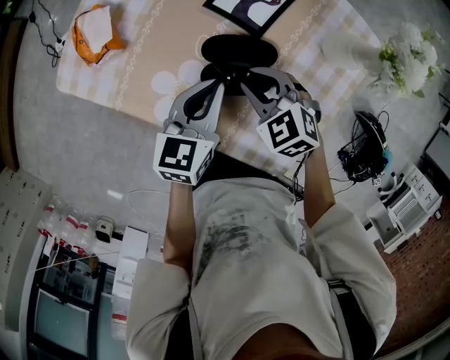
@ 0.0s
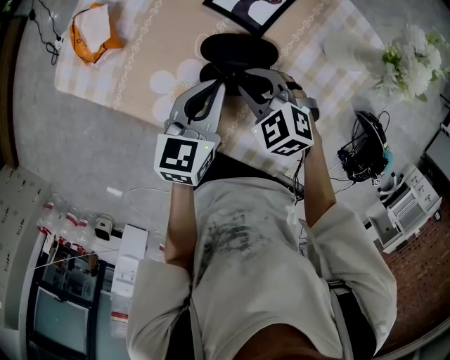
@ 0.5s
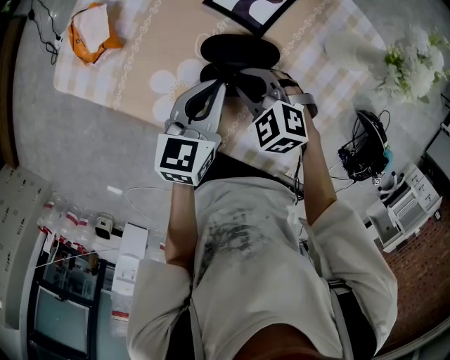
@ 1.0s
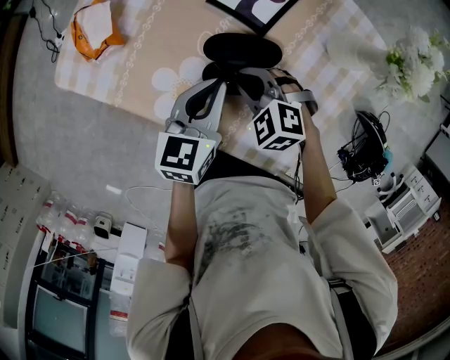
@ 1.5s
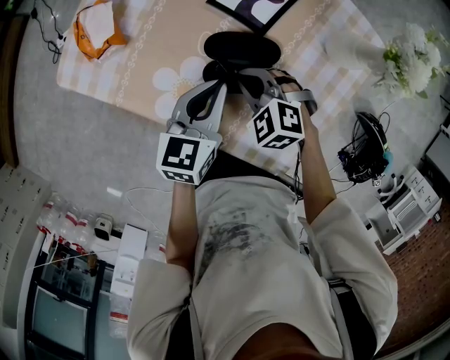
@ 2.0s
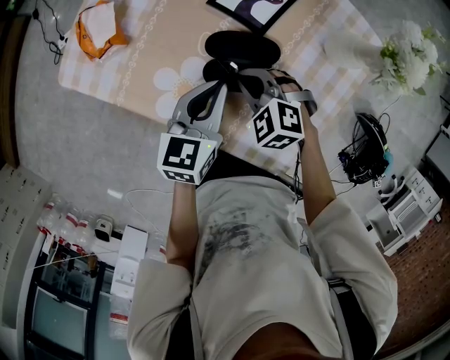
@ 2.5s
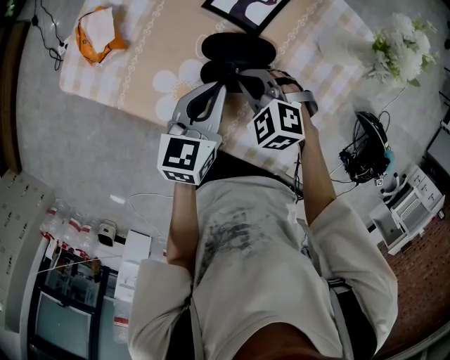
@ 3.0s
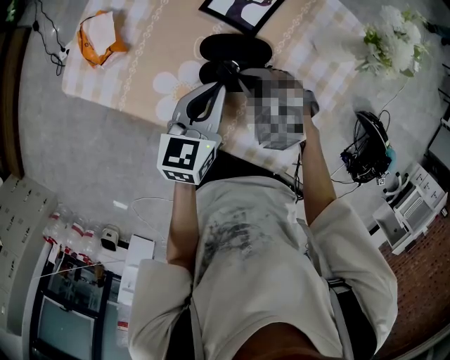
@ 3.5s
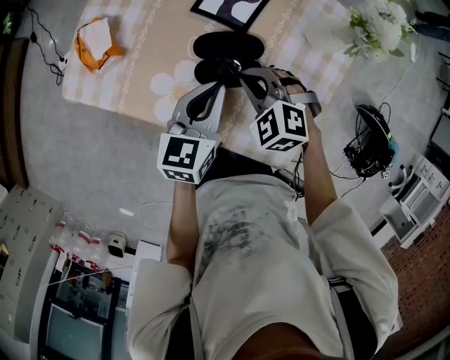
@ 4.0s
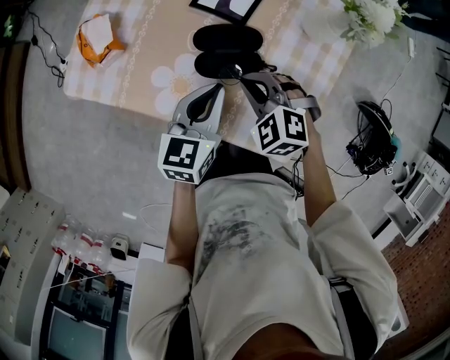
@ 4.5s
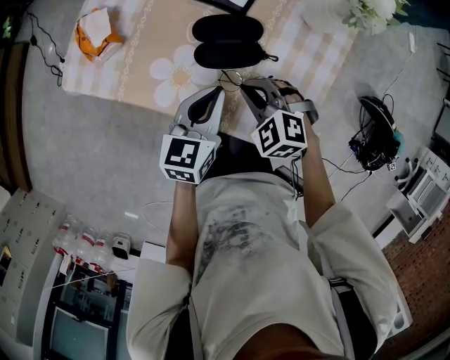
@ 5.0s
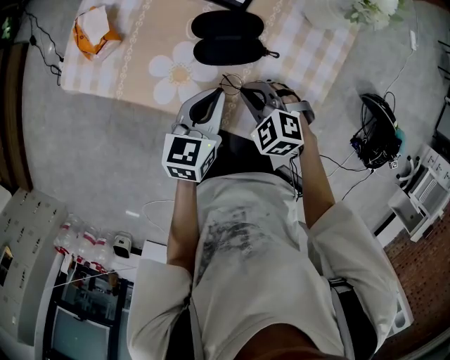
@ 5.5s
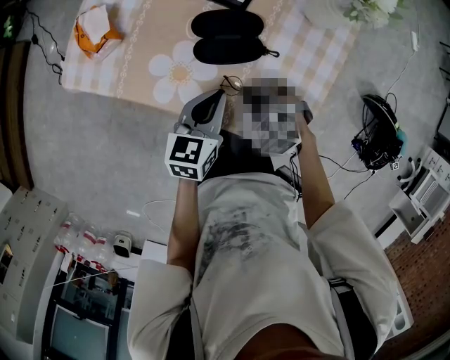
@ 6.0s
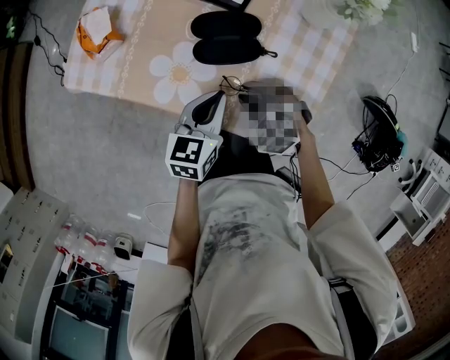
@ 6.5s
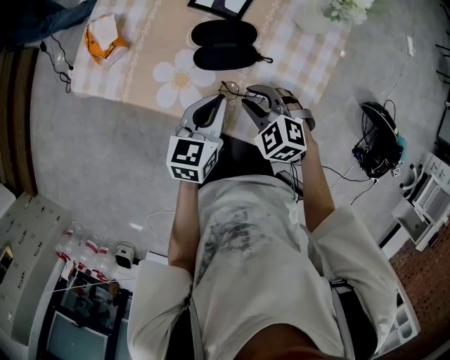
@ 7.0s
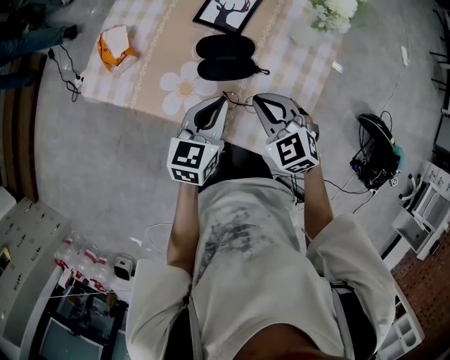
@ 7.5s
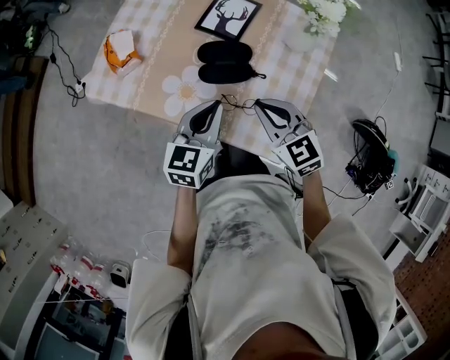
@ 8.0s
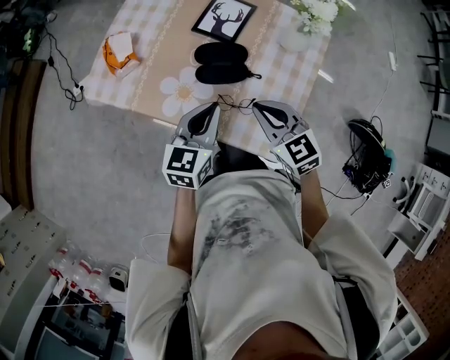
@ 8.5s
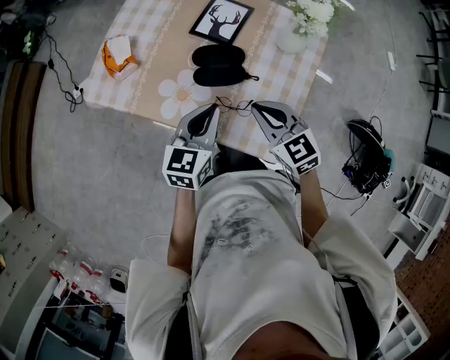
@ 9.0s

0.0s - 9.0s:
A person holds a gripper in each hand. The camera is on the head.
0.0s - 2.0s: The grippers make only small movements.
2.0s - 4.5s: The left gripper ends up about 5 cm from where it was, while the right gripper goes about 5 cm upward.
4.5s - 7.0s: Both grippers travel together backward, some 5 cm. The right gripper opens up.
7.0s - 9.0s: The right gripper travels upward by approximately 15 cm, turns by approximately 30 degrees, and closes up, while the left gripper shifts roughly 10 cm upward.

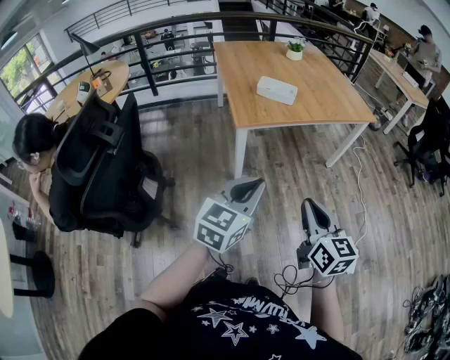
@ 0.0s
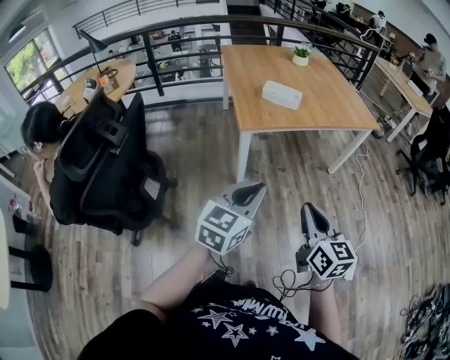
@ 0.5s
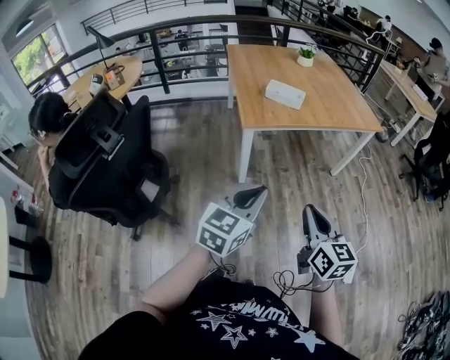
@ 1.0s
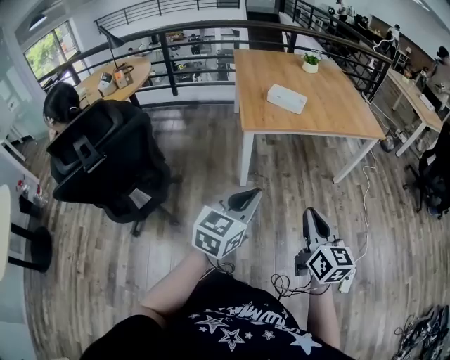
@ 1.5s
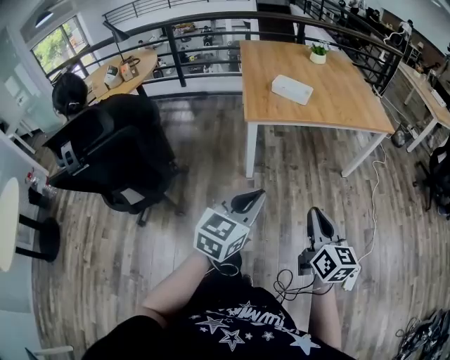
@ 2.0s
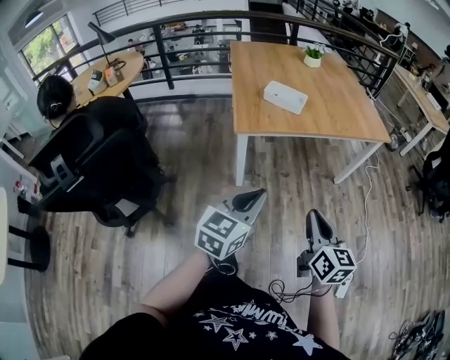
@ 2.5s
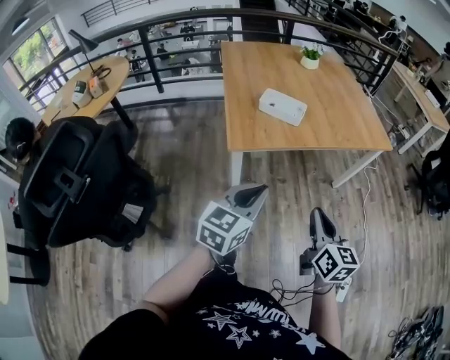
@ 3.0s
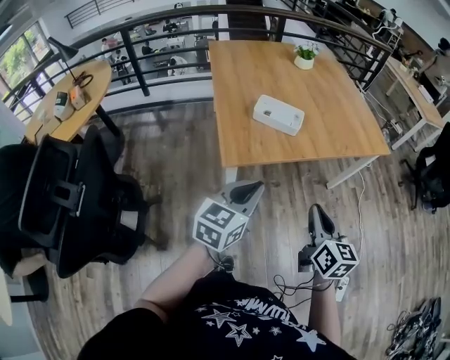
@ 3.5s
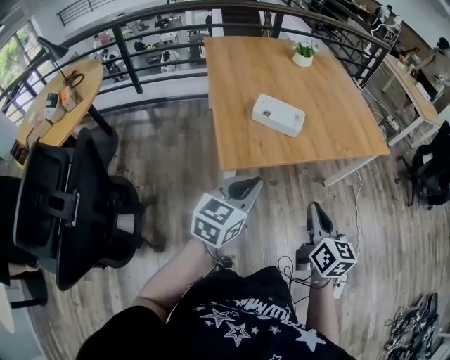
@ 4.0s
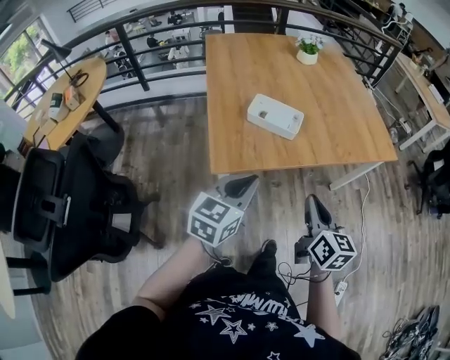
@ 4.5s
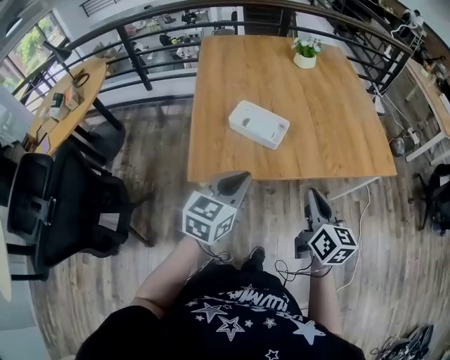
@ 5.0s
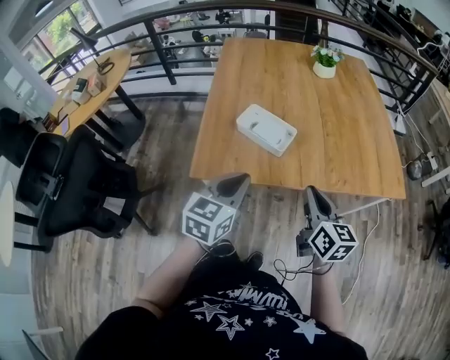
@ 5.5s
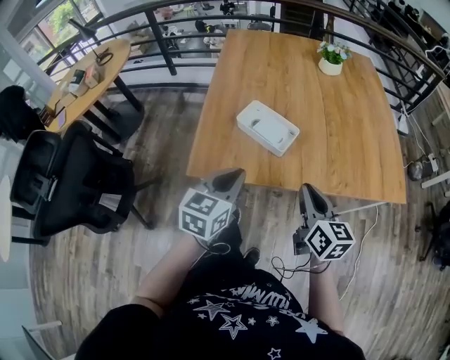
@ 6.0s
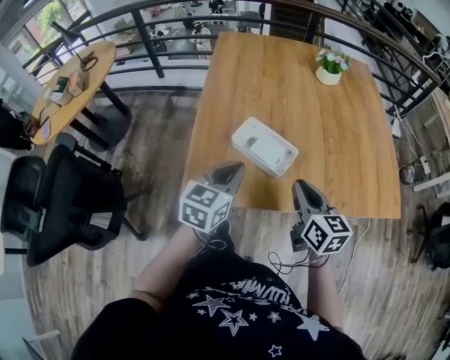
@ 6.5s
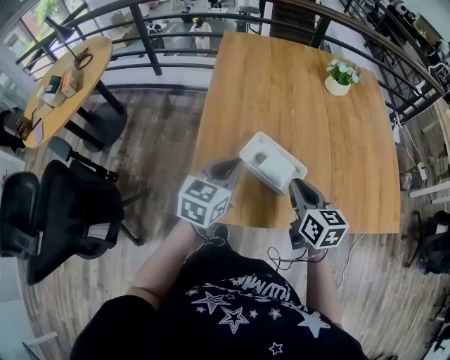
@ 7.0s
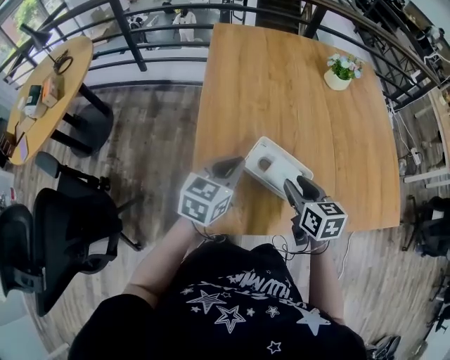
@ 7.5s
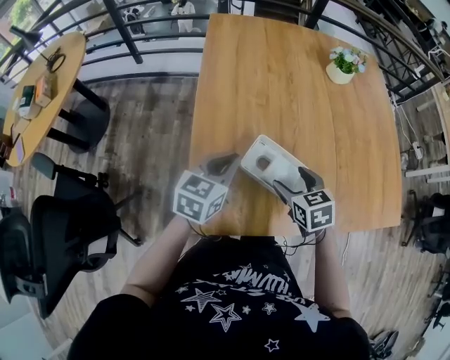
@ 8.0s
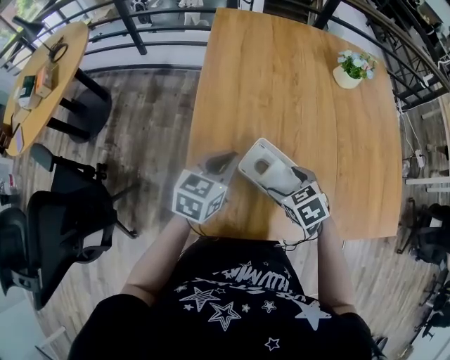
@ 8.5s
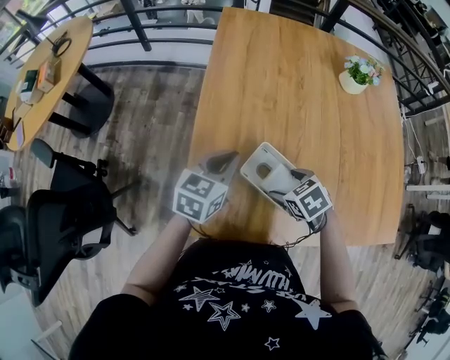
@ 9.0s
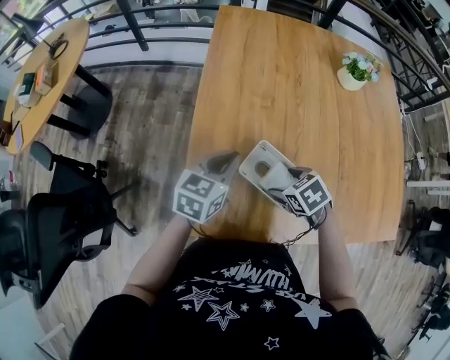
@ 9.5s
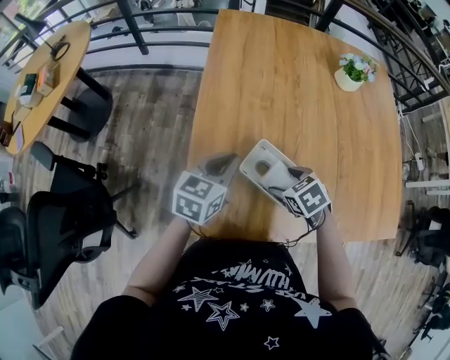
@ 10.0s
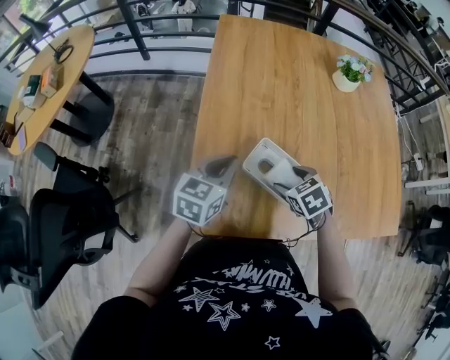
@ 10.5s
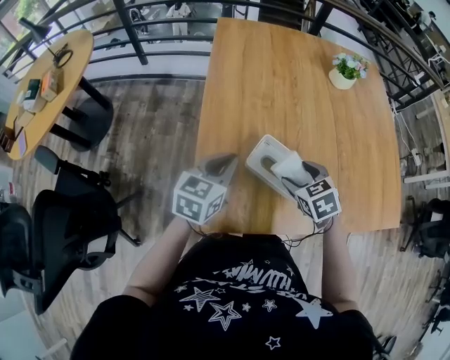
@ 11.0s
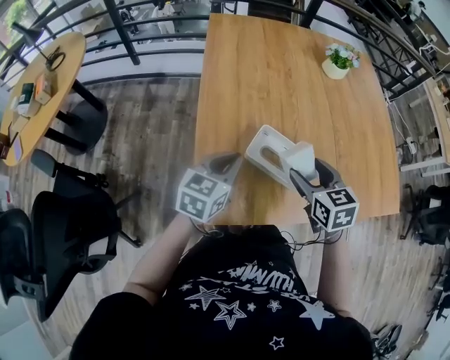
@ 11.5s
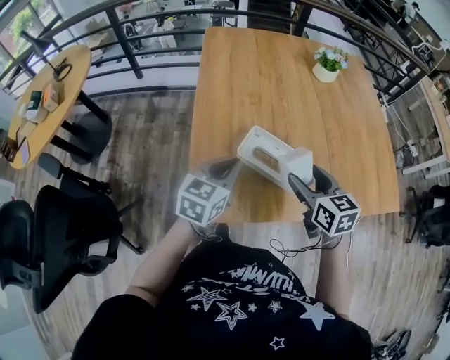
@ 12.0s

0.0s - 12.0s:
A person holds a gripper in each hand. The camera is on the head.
0.0s - 2.0s: The two grippers go approximately 10 cm to the right.
2.0s - 4.0s: Both grippers travel together forward, some 40 cm.
4.0s - 6.0s: Both grippers travel together forward and to the right, some 25 cm. The left gripper swivels about 30 degrees, while the right gripper rotates approximately 20 degrees.
6.0s - 8.0s: The left gripper moves forward and to the left, roughly 30 cm, while the right gripper heads forward, to the left and downward, covering approximately 30 cm, points its fingers about 30 degrees further downward, and opens.
8.0s - 10.0s: The right gripper moves roughly 5 cm, and swivels approximately 30 degrees.
10.0s - 12.0s: The left gripper moves backward, some 10 cm; the right gripper heads upward and backward, covering roughly 15 cm, and angles its fingers upward, by about 40 degrees.

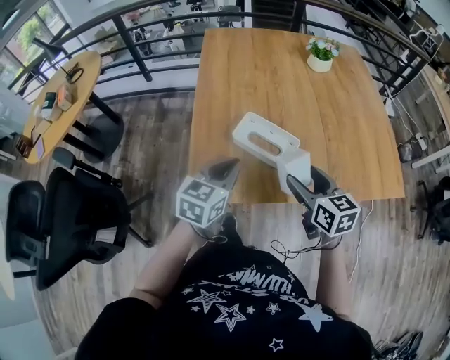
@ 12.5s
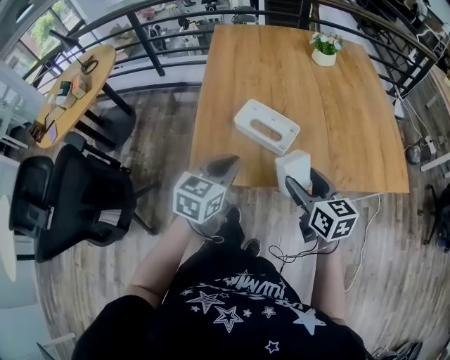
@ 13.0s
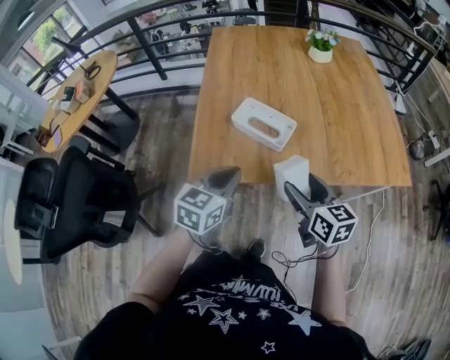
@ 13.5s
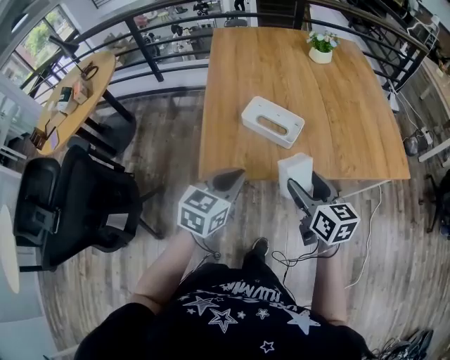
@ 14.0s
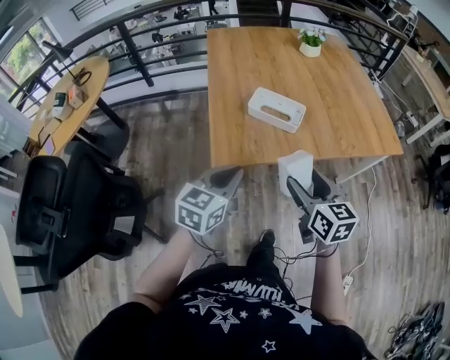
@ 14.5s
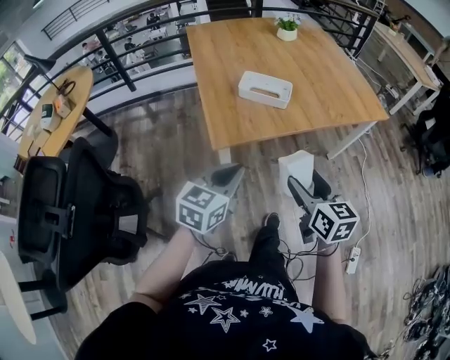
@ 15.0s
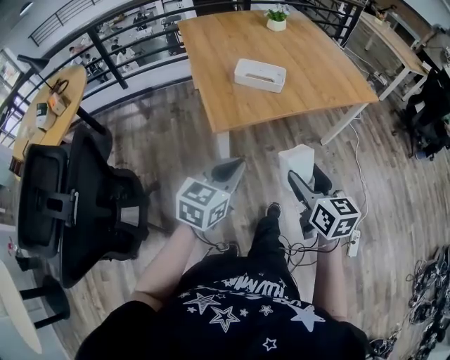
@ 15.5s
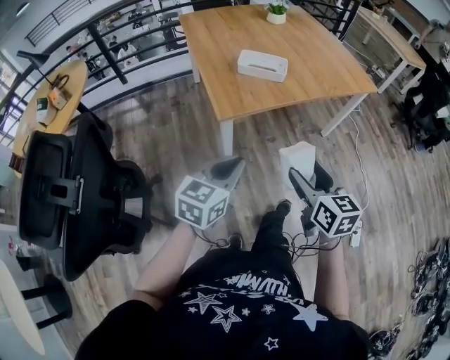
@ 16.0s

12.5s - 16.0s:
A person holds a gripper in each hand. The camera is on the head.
12.5s - 14.5s: The grippers both shift backward by approximately 20 cm.
14.5s - 16.0s: Both grippers move backward, approximately 25 cm.

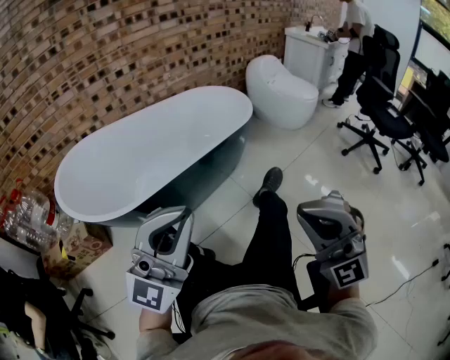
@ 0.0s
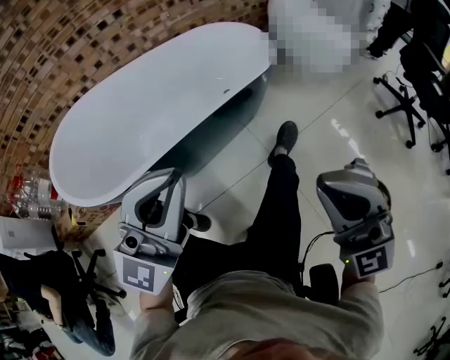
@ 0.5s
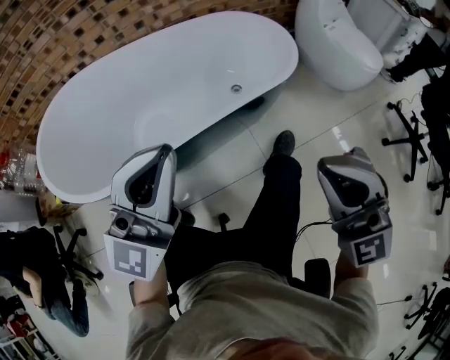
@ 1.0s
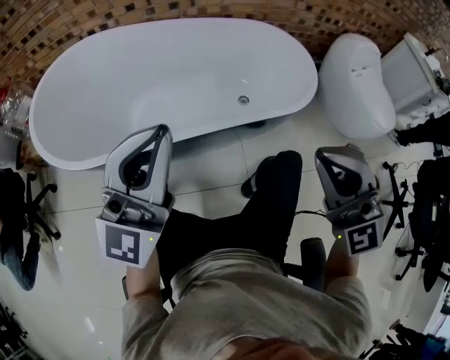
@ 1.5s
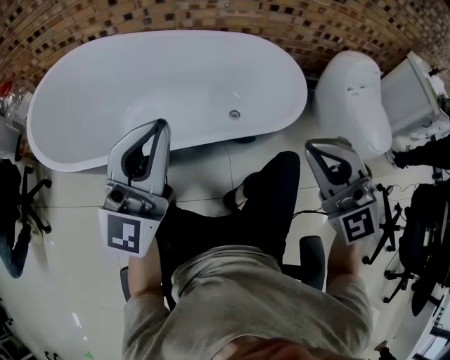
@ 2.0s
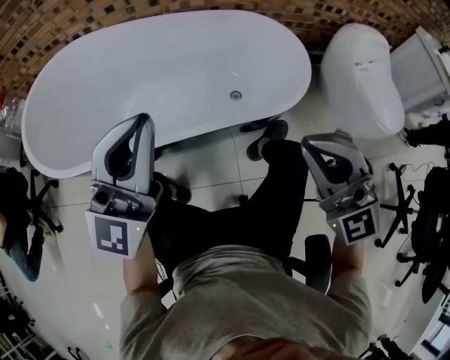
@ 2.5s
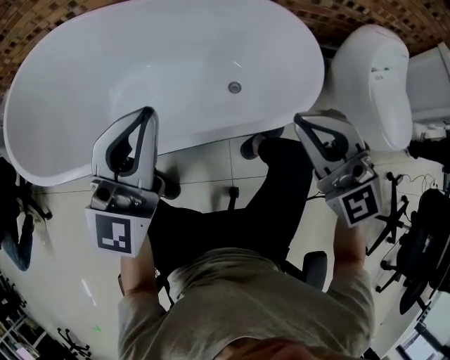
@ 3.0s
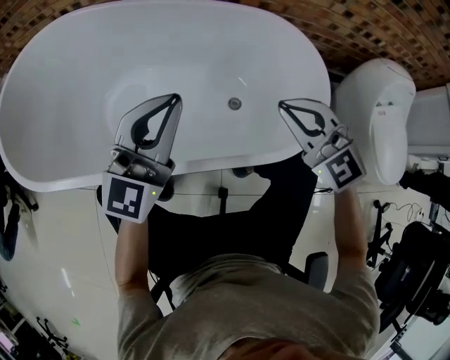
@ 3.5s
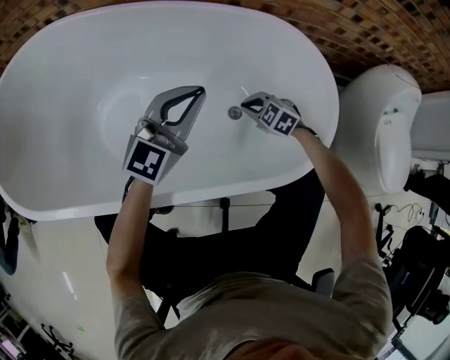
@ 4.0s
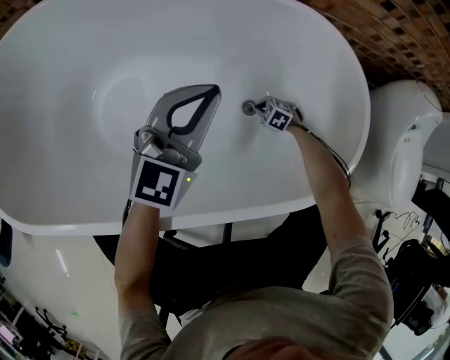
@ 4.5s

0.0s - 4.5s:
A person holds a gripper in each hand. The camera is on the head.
0.0s - 2.0s: Both grippers are carried some 50 cm. The right gripper swivels roughly 30 degrees. Meanwhile the left gripper rotates roughly 40 degrees.
2.0s - 4.5s: The right gripper shifts about 80 cm downward and forward, and tips its fingers downward by approximately 70 degrees. The left gripper heads forward and downward, covering some 40 cm, and swivels some 20 degrees.
